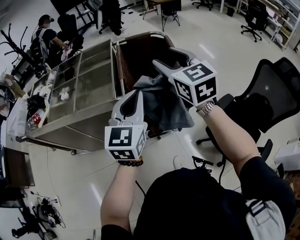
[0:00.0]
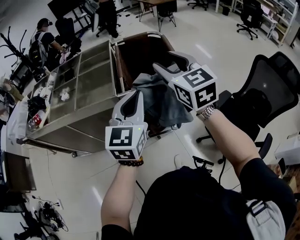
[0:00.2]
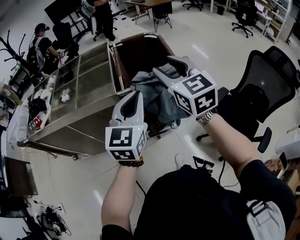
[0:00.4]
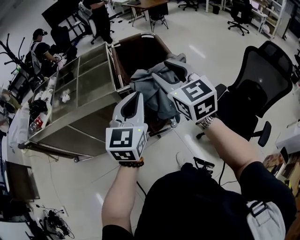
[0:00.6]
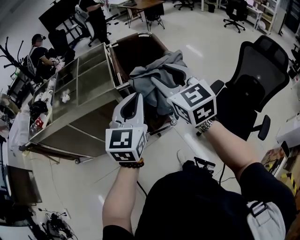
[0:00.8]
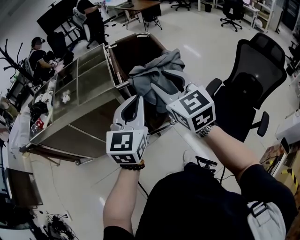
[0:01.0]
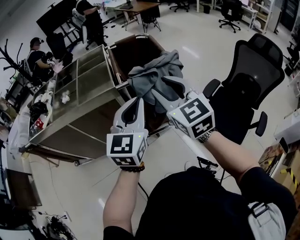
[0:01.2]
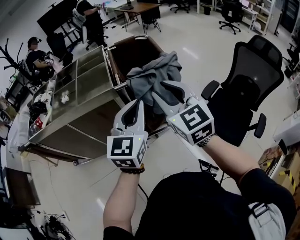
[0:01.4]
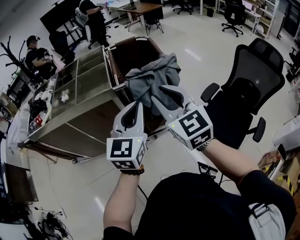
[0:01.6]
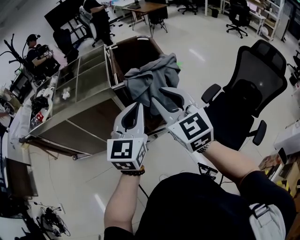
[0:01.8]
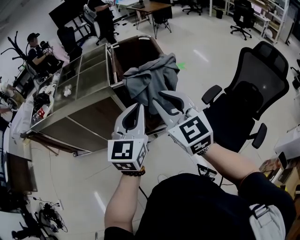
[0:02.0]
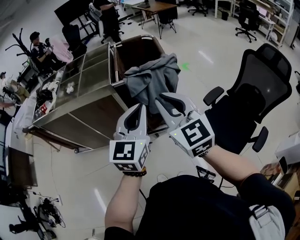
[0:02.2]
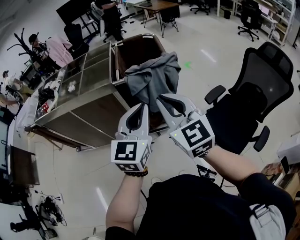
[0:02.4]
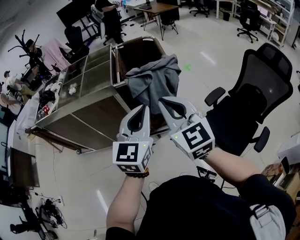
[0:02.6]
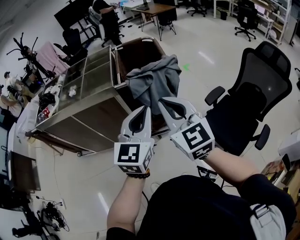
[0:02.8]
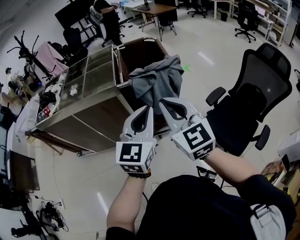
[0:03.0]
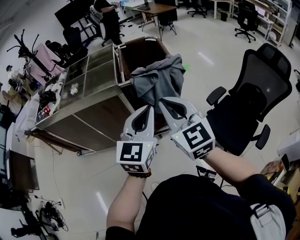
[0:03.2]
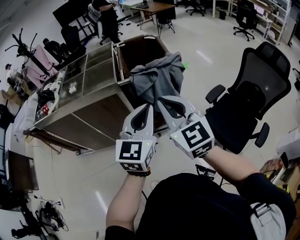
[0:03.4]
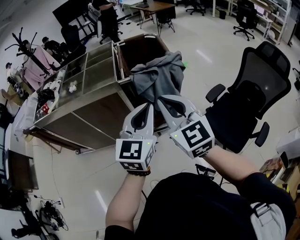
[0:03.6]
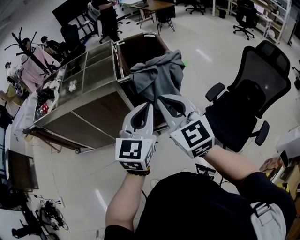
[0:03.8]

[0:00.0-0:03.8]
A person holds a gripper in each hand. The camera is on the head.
0:00.0 to 0:01.2: The two grippers go about 20 cm backward.
0:01.2 to 0:02.6: The left gripper moves to the right, approximately 5 cm; the right gripper shifts roughly 10 cm backward and to the right.
0:02.6 to 0:03.8: The grippers stay close to where they were, moving slightly.

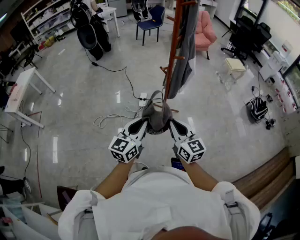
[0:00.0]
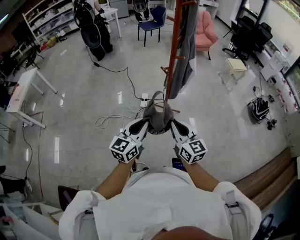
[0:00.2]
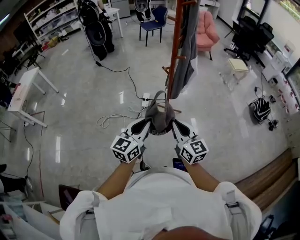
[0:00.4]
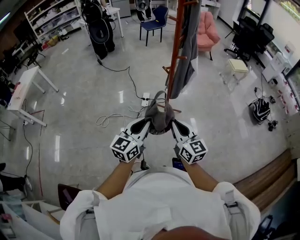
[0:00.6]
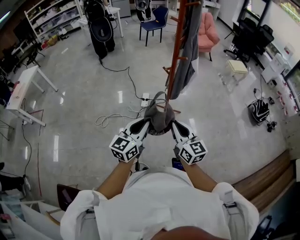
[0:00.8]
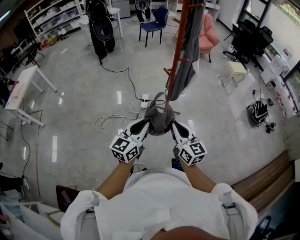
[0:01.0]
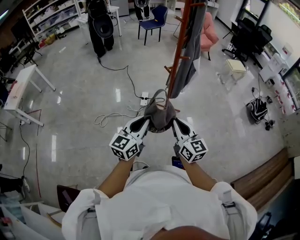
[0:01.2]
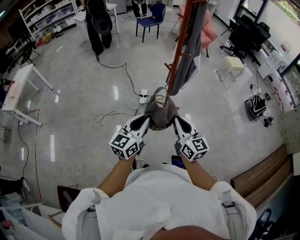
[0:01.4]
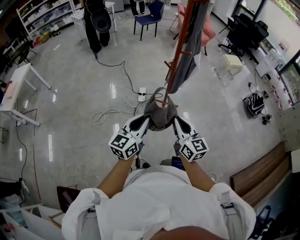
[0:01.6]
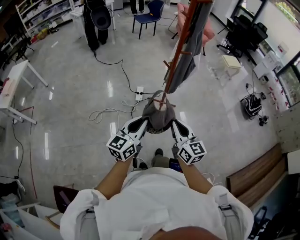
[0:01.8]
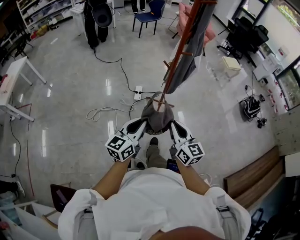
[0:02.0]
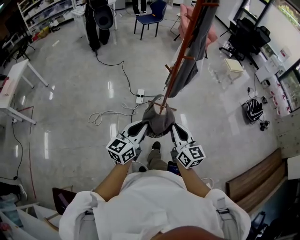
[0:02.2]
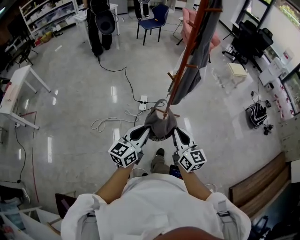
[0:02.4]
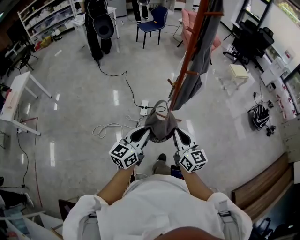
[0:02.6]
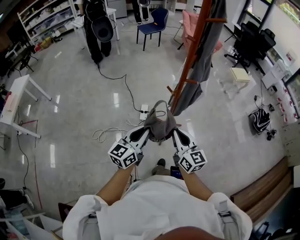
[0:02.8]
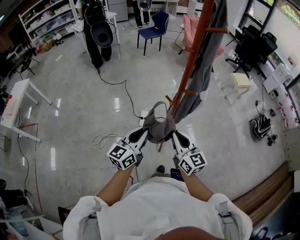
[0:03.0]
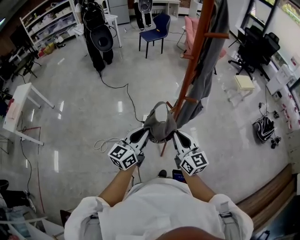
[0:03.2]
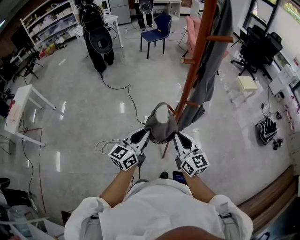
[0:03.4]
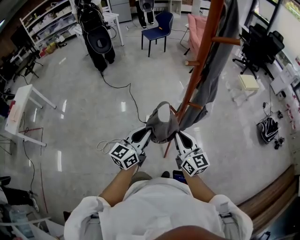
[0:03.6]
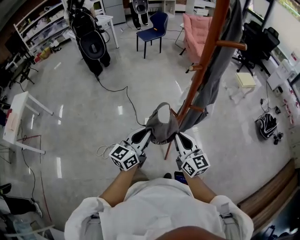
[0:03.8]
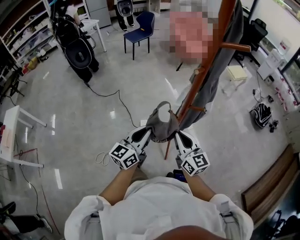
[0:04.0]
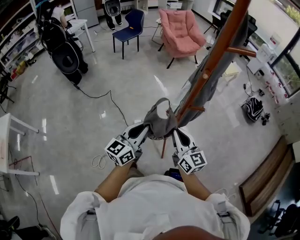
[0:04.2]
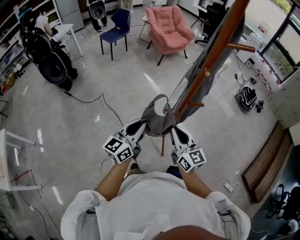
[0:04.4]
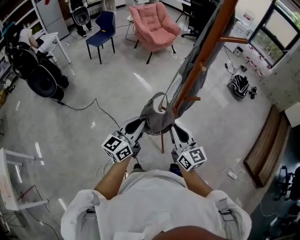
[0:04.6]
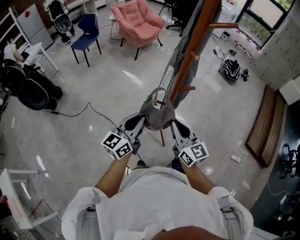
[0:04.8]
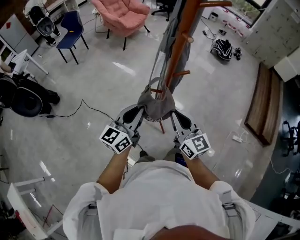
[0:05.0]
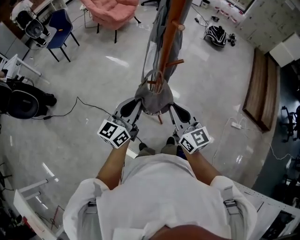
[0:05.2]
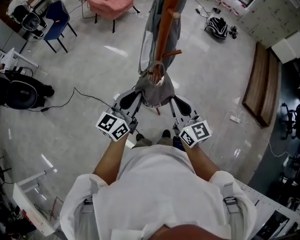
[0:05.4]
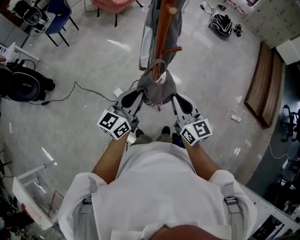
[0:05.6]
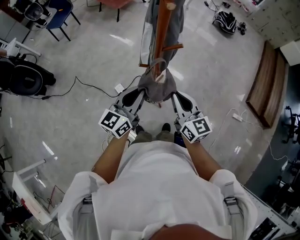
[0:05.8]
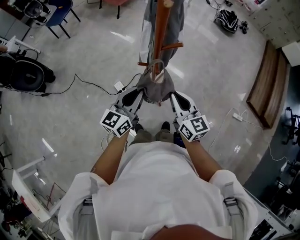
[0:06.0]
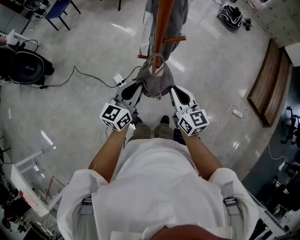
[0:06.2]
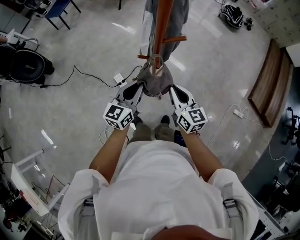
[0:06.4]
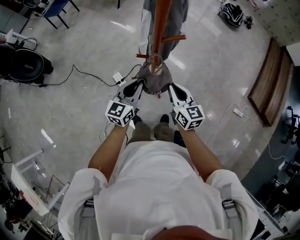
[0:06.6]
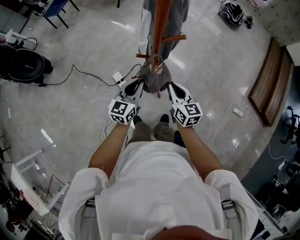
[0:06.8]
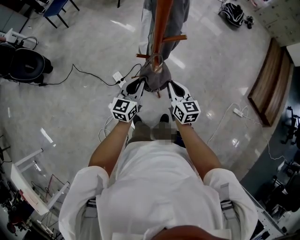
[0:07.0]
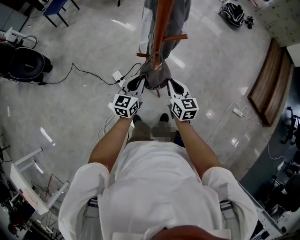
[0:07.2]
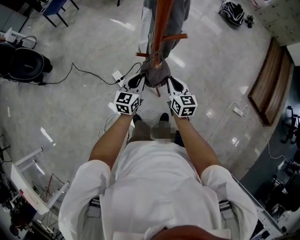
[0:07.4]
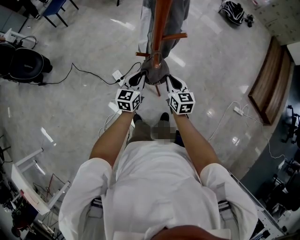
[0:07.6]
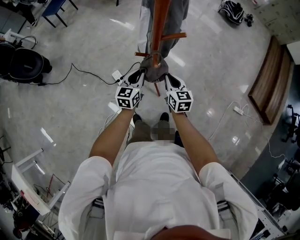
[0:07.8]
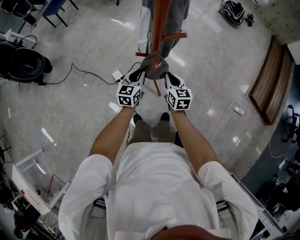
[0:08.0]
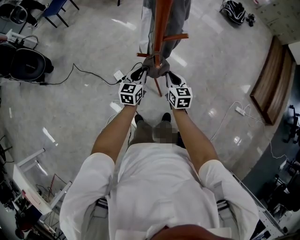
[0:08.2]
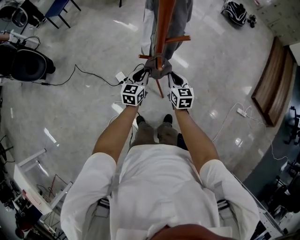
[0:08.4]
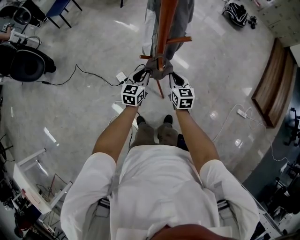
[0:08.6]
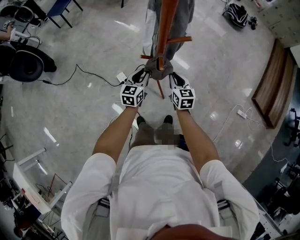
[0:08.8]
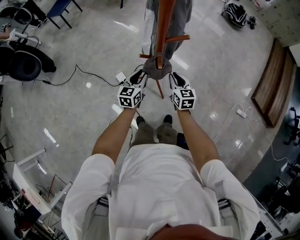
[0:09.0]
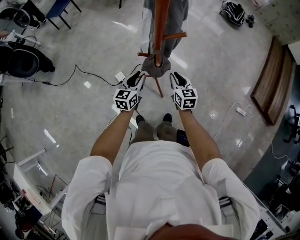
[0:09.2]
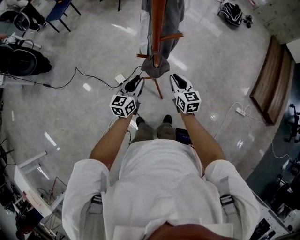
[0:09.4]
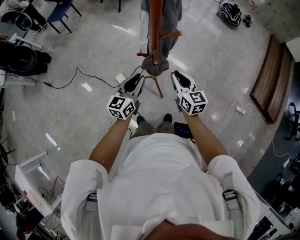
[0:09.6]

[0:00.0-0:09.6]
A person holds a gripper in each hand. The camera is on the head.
0:00.0 to 0:01.6: The left gripper heads to the left, covering roughly 5 cm.
0:01.6 to 0:03.2: The grippers both shift forward by approximately 30 cm.
0:03.2 to 0:04.8: The left gripper moves roughly 20 cm, and turns by about 40 degrees. Meanwhile the right gripper shifts by approximately 15 cm, and swivels roughly 40 degrees.
0:04.8 to 0:06.4: The right gripper is displaced downward and to the right by roughly 15 cm. The left gripper is displaced downward, to the right and forward by about 20 cm.
0:06.4 to 0:08.0: Both grippers travel together downward and forward, approximately 15 cm.
0:08.0 to 0:09.6: The right gripper moves upward, some 10 cm, while the left gripper moves upward and backward, some 15 cm.

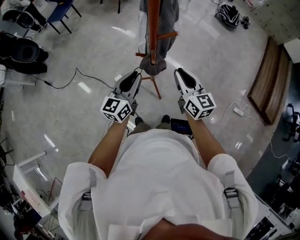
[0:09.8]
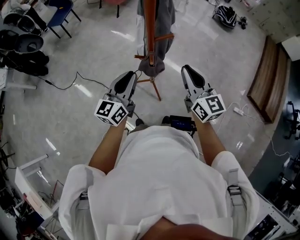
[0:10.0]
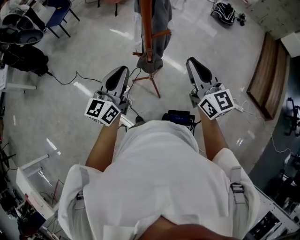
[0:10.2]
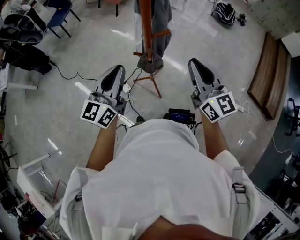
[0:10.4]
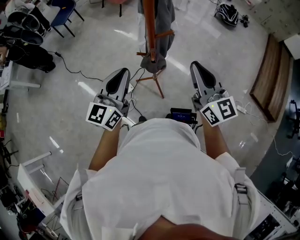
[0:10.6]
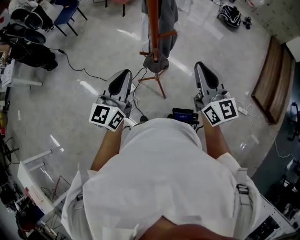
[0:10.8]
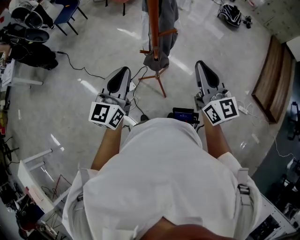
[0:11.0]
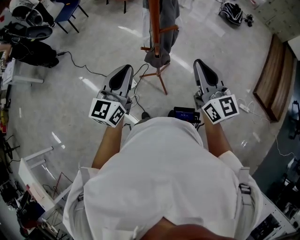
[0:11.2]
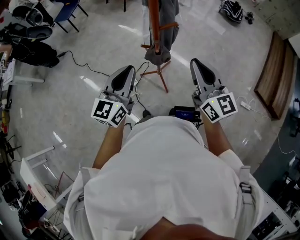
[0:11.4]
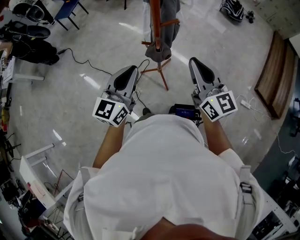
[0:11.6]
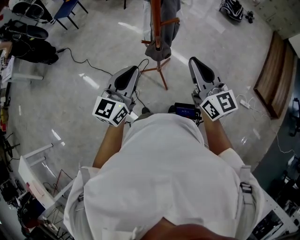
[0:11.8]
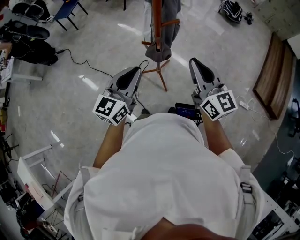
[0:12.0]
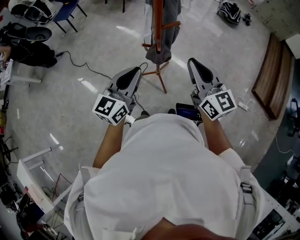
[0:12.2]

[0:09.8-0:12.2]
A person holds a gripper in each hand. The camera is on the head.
0:09.8 to 0:11.0: The grippers both shift upward by approximately 15 cm.
0:11.0 to 0:12.2: The right gripper moves approximately 5 cm.

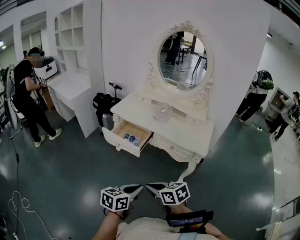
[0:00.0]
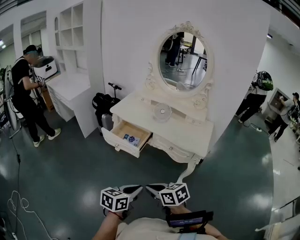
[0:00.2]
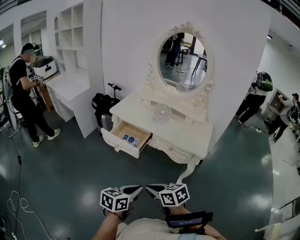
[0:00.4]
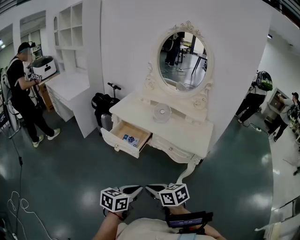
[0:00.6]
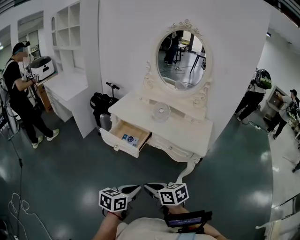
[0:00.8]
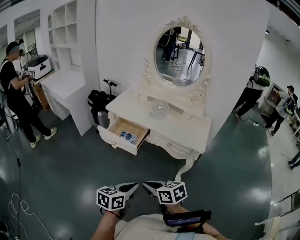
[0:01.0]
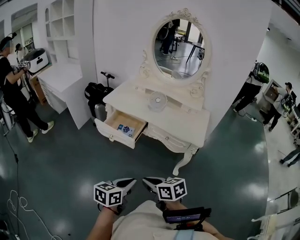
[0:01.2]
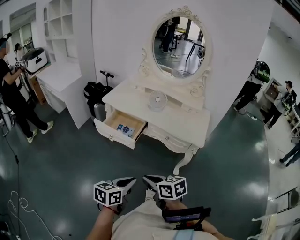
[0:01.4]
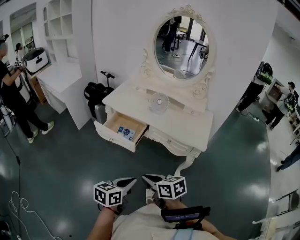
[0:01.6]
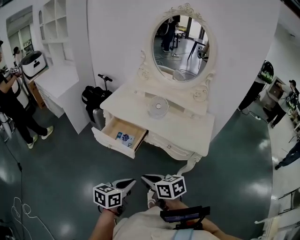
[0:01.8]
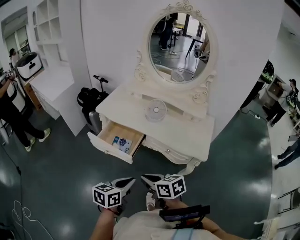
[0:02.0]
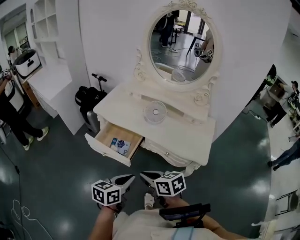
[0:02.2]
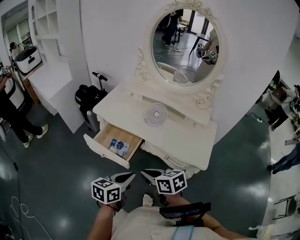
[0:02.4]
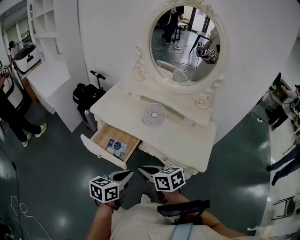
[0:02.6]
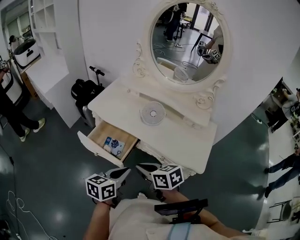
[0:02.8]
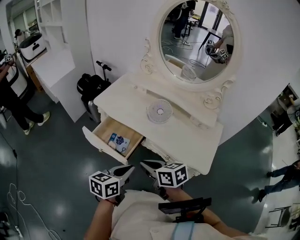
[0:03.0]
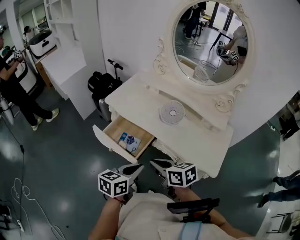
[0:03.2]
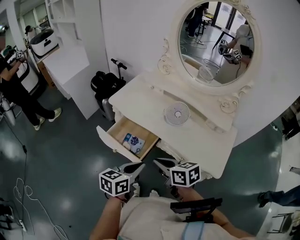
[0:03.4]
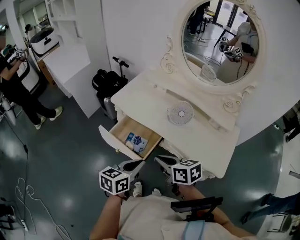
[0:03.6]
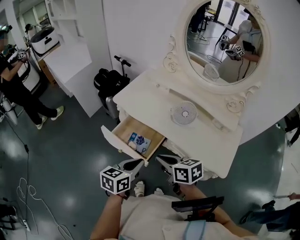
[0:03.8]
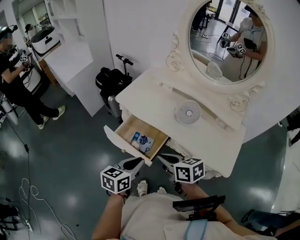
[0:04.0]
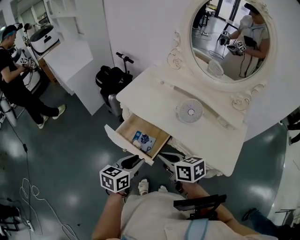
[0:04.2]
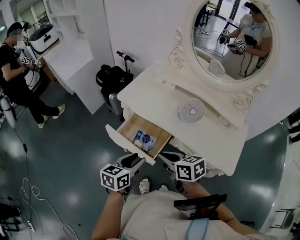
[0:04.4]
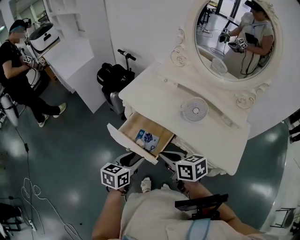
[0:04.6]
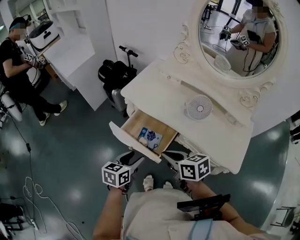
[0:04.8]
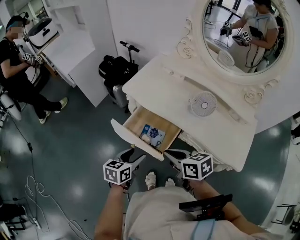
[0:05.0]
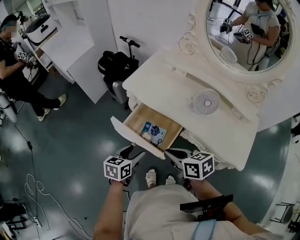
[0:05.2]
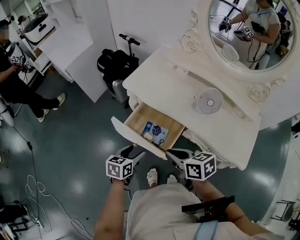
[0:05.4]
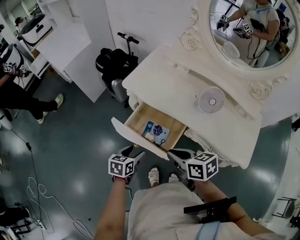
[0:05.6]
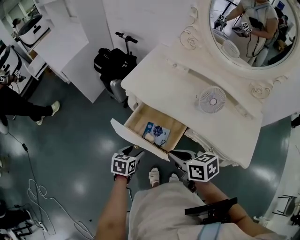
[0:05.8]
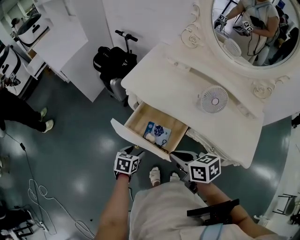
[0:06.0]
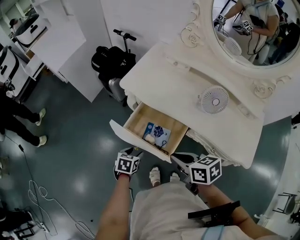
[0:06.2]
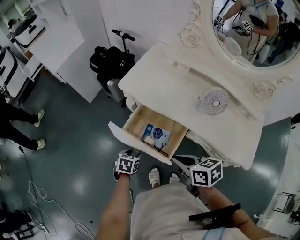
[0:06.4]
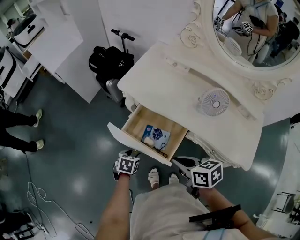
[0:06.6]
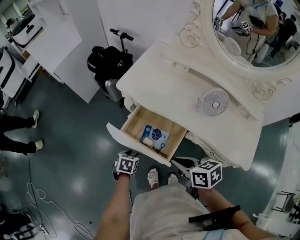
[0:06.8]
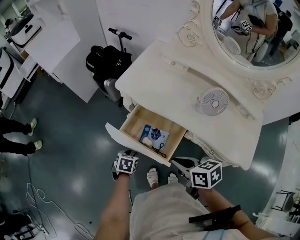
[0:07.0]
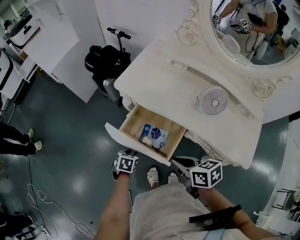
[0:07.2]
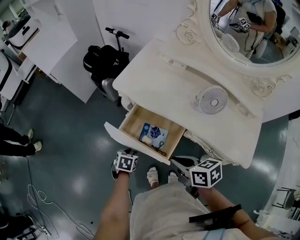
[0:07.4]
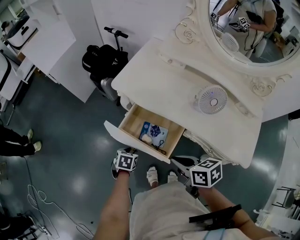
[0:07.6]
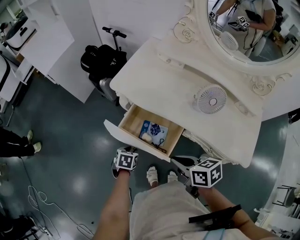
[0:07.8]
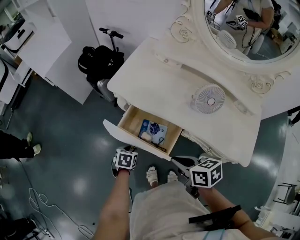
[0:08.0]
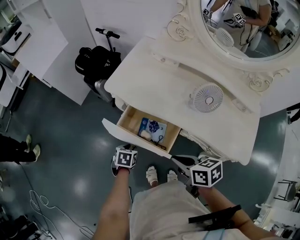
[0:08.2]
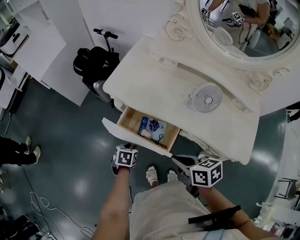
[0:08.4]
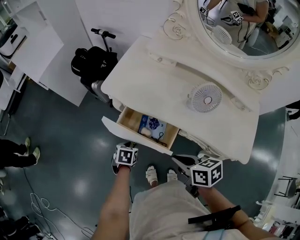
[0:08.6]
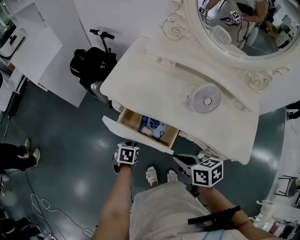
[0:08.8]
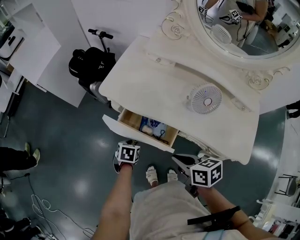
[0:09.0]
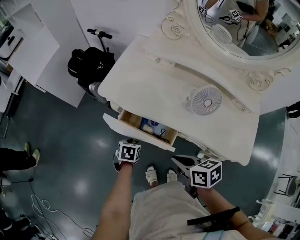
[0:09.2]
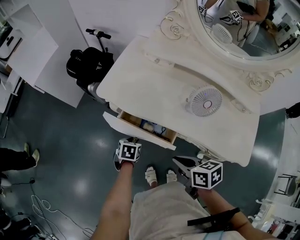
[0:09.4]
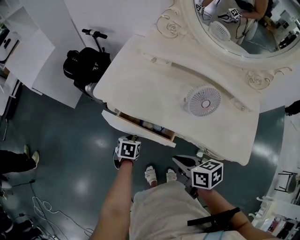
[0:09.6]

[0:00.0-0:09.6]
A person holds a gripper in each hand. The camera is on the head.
0:00.0 to 0:01.6: Both grippers travel together forward, roughly 5 cm.
0:01.6 to 0:03.2: Both grippers travel together forward, about 25 cm.
0:03.2 to 0:04.8: The right gripper moves to the left and forward, about 10 cm. Meanwhile the left gripper is displaced to the left, forward and downward by roughly 20 cm, and opens up.
0:04.8 to 0:06.4: The right gripper heads downward, covering some 5 cm. Meanwhile the left gripper travels downward by some 20 cm, and turns by approximately 30 degrees.
0:06.4 to 0:08.0: The grippers make only small movements.
0:08.0 to 0:09.6: The left gripper moves forward and to the right, some 10 cm. The right gripper shifts by roughly 5 cm.
